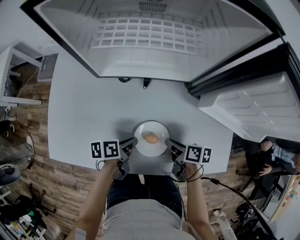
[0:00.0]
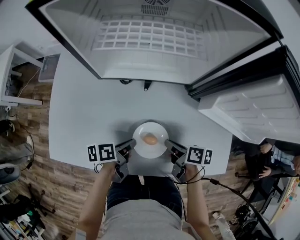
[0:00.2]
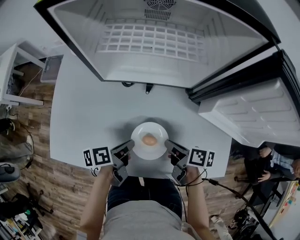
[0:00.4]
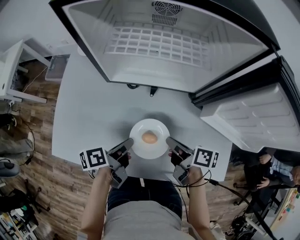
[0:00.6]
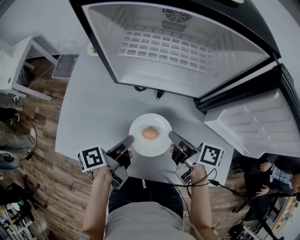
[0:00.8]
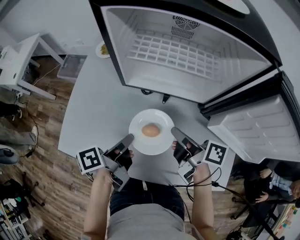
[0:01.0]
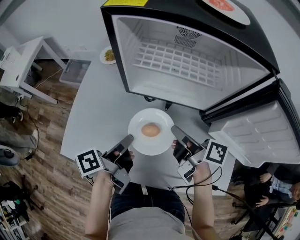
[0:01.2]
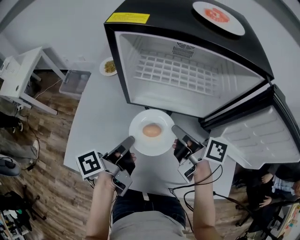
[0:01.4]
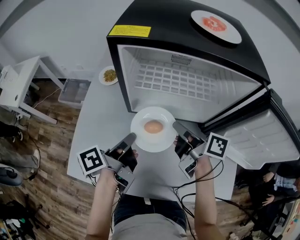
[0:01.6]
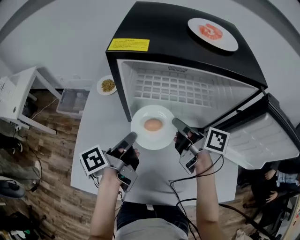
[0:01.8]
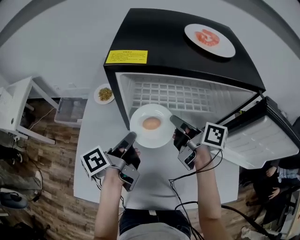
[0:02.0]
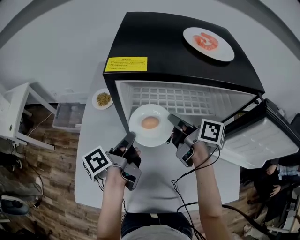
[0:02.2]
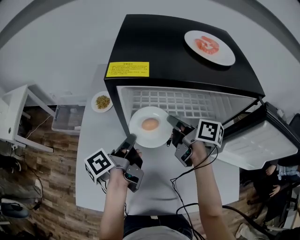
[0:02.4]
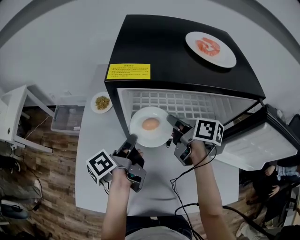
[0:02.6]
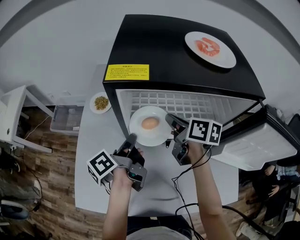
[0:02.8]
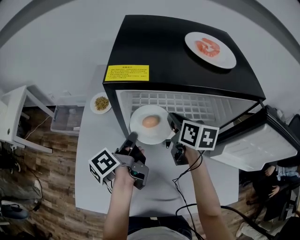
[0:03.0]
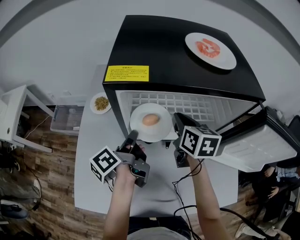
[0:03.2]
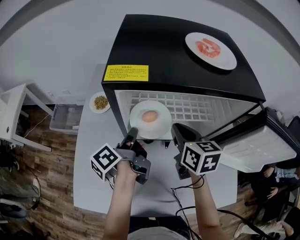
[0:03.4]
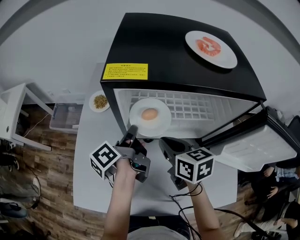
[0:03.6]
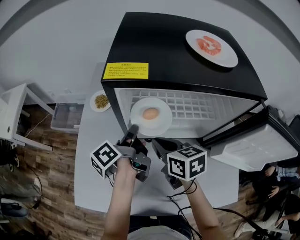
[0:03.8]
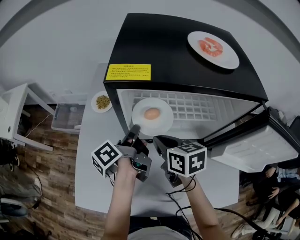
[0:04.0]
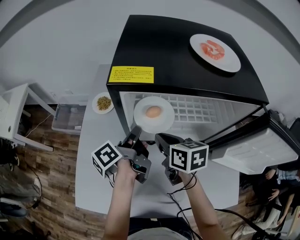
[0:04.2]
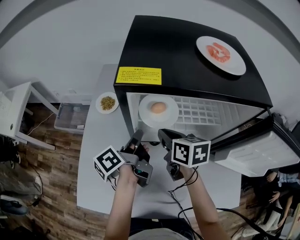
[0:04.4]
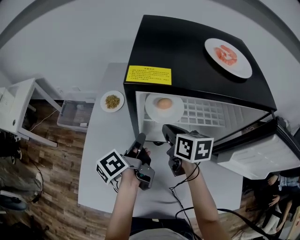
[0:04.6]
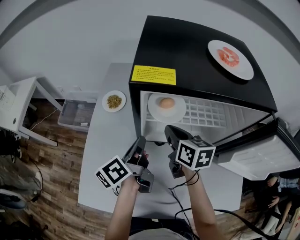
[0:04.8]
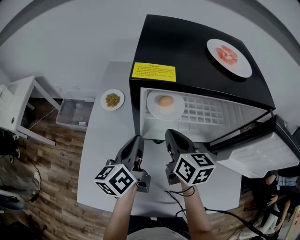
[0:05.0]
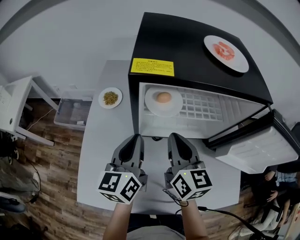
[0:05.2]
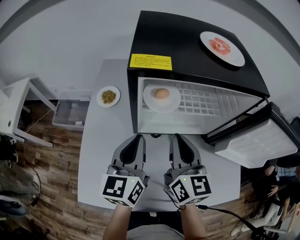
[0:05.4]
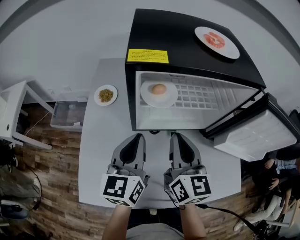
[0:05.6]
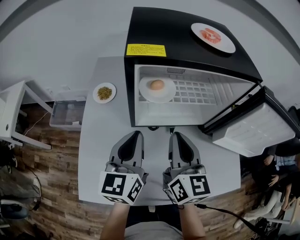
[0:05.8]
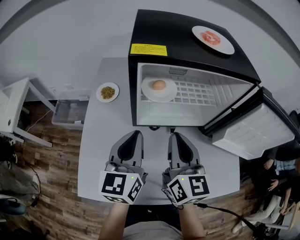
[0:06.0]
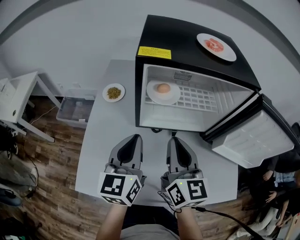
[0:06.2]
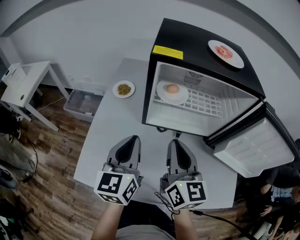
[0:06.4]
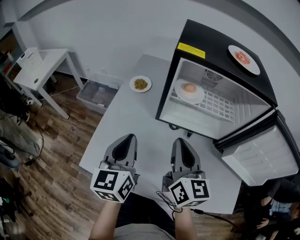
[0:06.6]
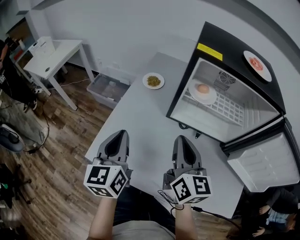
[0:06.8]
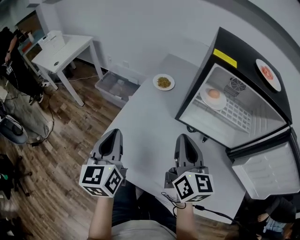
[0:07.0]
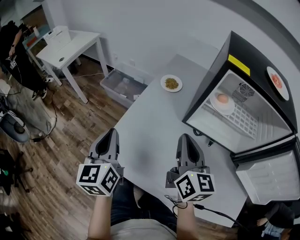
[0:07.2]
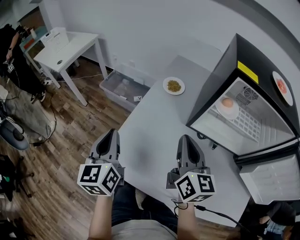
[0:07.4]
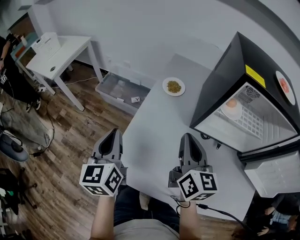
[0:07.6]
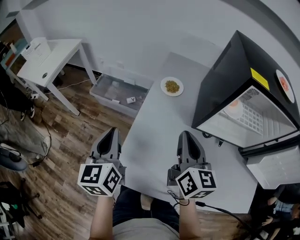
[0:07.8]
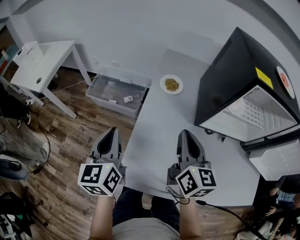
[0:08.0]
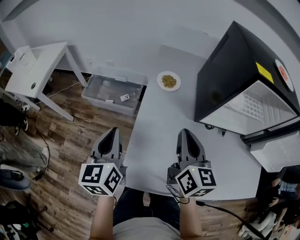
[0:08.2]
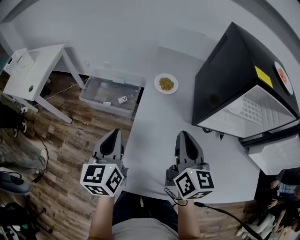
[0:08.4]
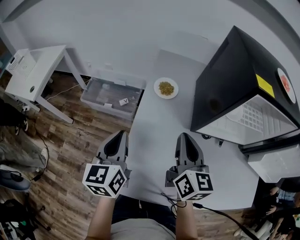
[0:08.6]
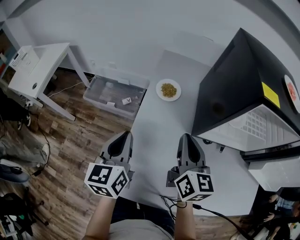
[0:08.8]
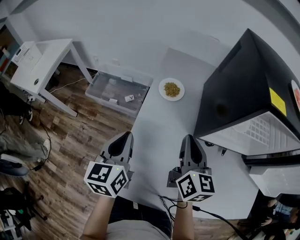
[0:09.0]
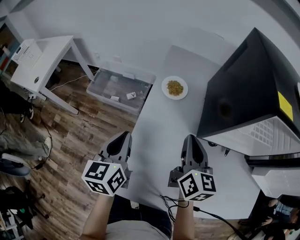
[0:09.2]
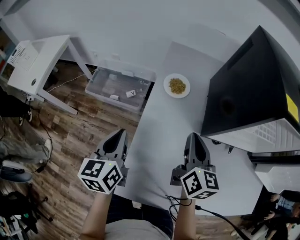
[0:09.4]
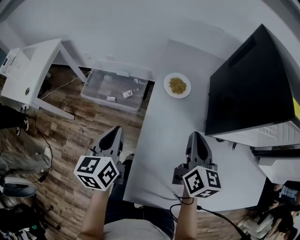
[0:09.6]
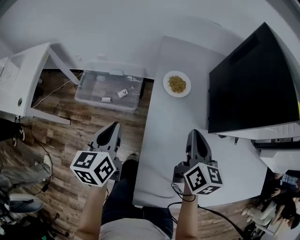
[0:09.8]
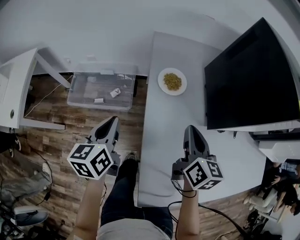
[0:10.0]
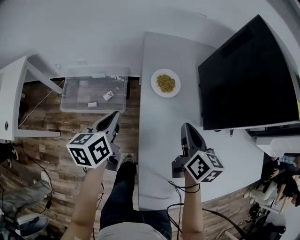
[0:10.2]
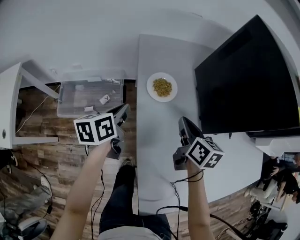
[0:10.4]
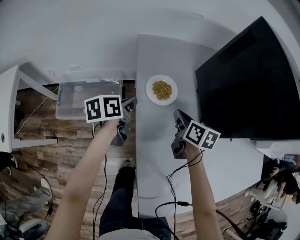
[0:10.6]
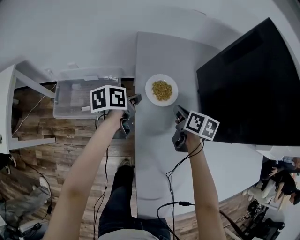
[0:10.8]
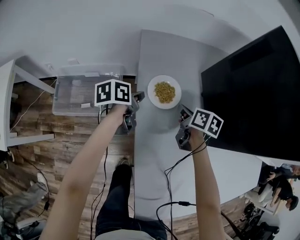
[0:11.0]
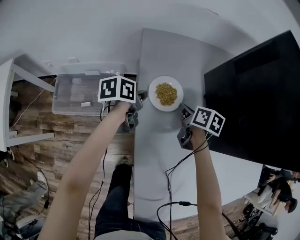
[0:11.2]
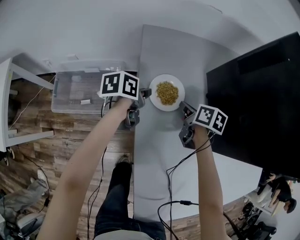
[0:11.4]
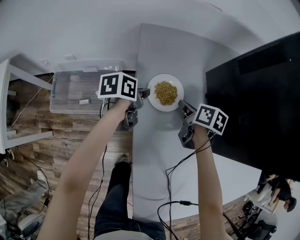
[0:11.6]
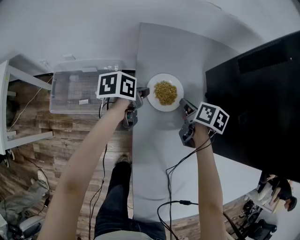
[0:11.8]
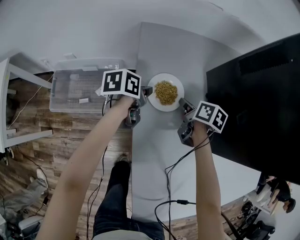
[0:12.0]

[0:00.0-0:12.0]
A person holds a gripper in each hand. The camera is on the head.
0:00.0 to 0:01.6: The left gripper is displaced upward, forward and to the left by roughly 30 cm, and swivels roughly 40 degrees, while the right gripper goes roughly 30 cm upward and forward, and changes its angle by roughly 30 degrees.
0:01.6 to 0:03.0: Both grippers travel together forward, about 10 cm. The right gripper swivels some 40 degrees.
0:03.0 to 0:04.4: The right gripper travels to the left by some 5 cm.
0:04.4 to 0:06.0: The two grippers go approximately 15 cm backward and upward. The left gripper twists approximately 70 degrees clockwise, seen from behind. Meanwhile the right gripper rotates about 40 degrees.
0:06.0 to 0:07.6: The right gripper moves roughly 20 cm, and turns by some 20 degrees, while the left gripper changes place by some 30 cm, and turns by about 30 degrees.
0:07.6 to 0:09.0: The two grippers go about 10 cm forward.
0:09.0 to 0:10.4: The left gripper is displaced forward and downward by approximately 25 cm, and changes its angle by approximately 40 degrees. Meanwhile the right gripper goes about 15 cm forward, downward and to the left, and turns by some 20 degrees.
0:10.4 to 0:12.0: The two grippers go roughly 20 cm forward and downward. The left gripper changes its angle by approximately 20 degrees; the right gripper changes its angle by approximately 20 degrees.

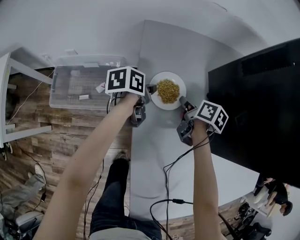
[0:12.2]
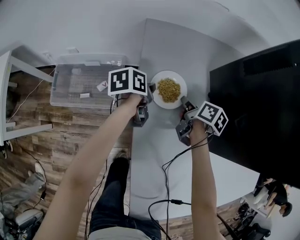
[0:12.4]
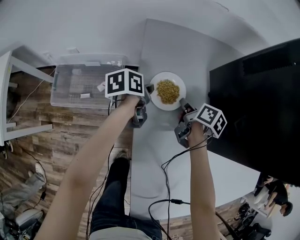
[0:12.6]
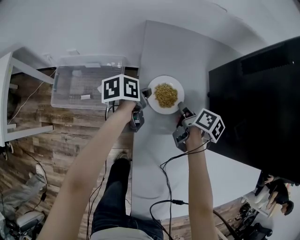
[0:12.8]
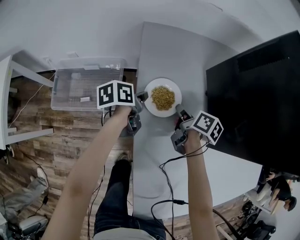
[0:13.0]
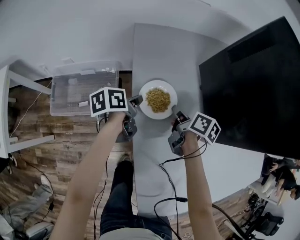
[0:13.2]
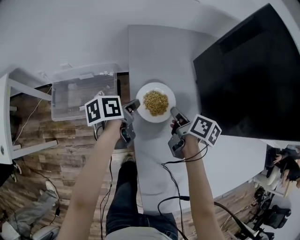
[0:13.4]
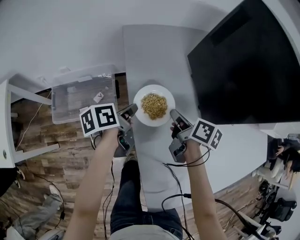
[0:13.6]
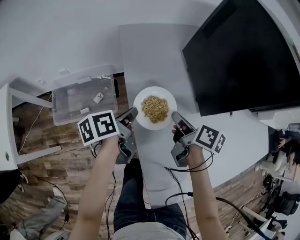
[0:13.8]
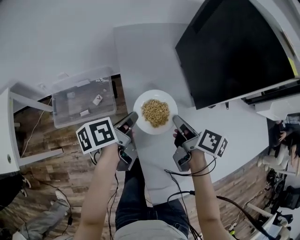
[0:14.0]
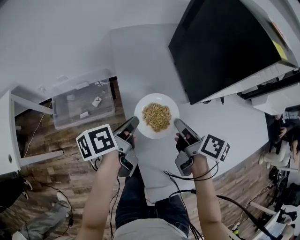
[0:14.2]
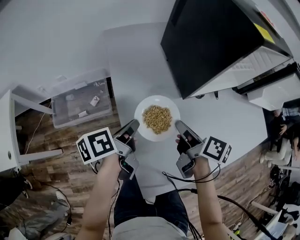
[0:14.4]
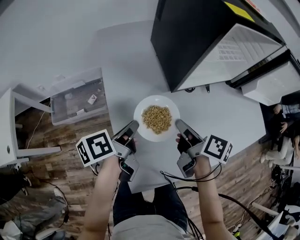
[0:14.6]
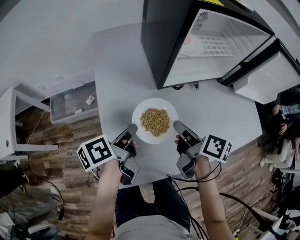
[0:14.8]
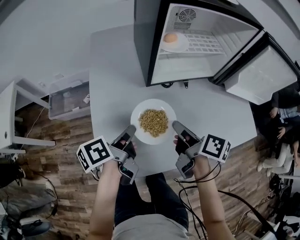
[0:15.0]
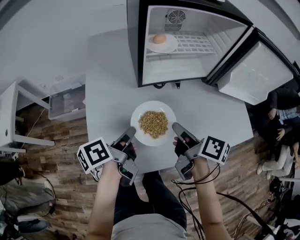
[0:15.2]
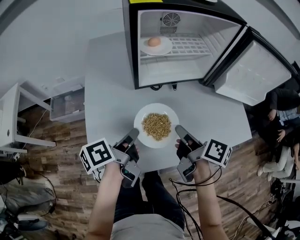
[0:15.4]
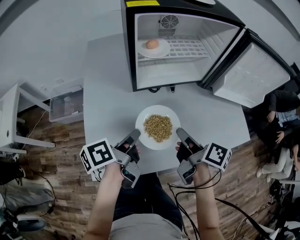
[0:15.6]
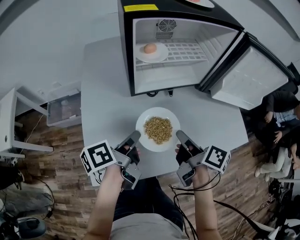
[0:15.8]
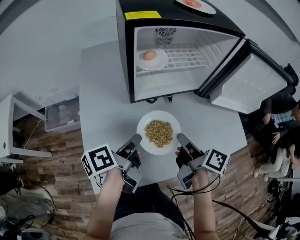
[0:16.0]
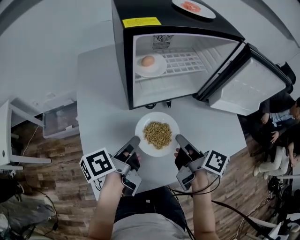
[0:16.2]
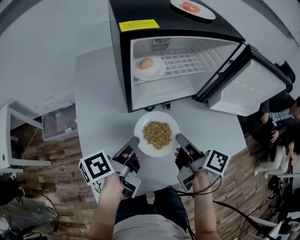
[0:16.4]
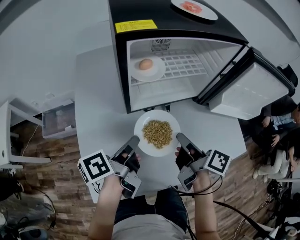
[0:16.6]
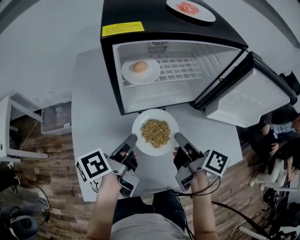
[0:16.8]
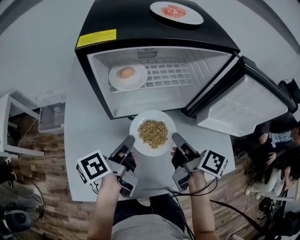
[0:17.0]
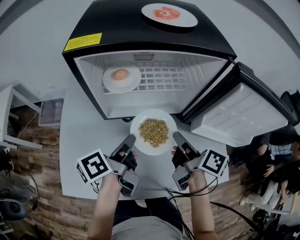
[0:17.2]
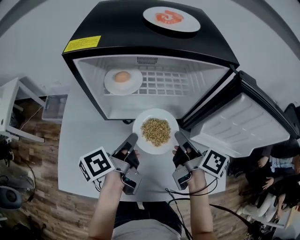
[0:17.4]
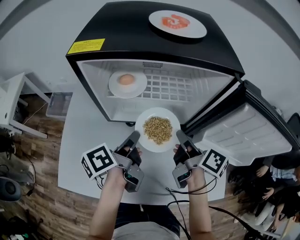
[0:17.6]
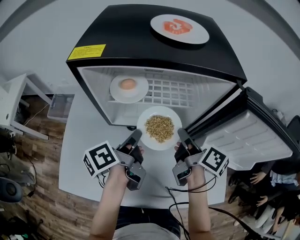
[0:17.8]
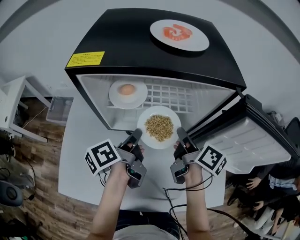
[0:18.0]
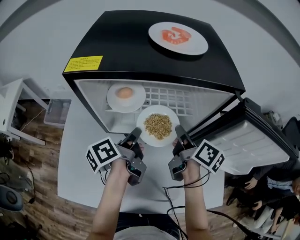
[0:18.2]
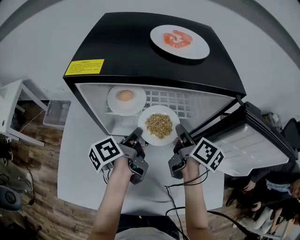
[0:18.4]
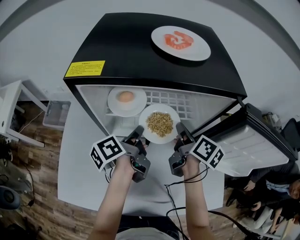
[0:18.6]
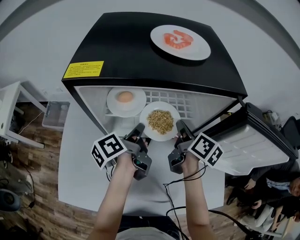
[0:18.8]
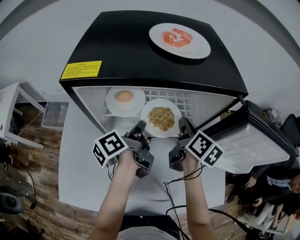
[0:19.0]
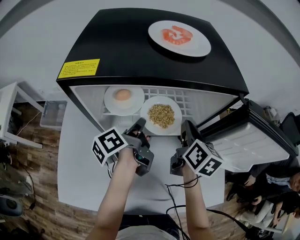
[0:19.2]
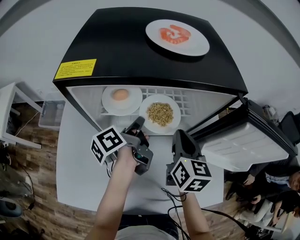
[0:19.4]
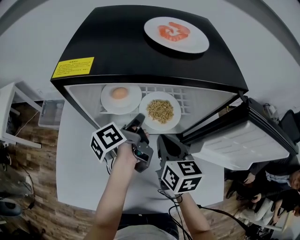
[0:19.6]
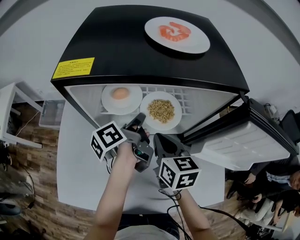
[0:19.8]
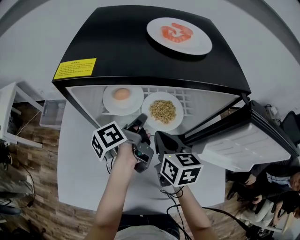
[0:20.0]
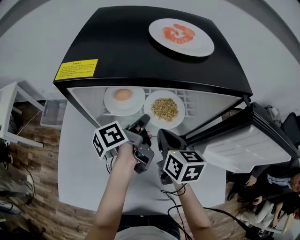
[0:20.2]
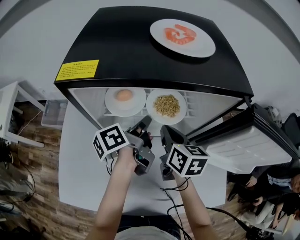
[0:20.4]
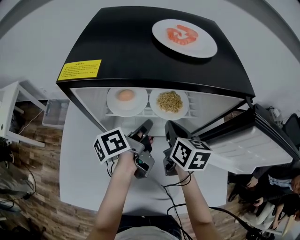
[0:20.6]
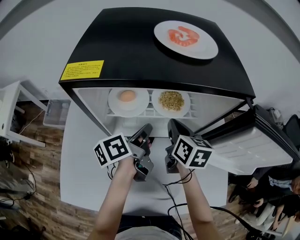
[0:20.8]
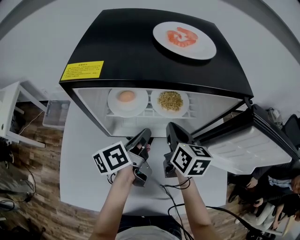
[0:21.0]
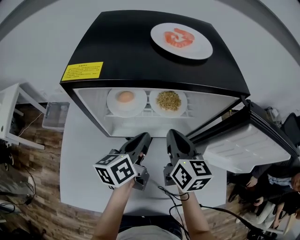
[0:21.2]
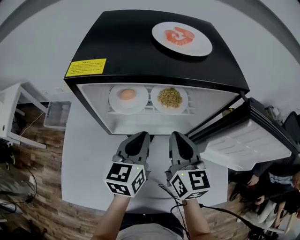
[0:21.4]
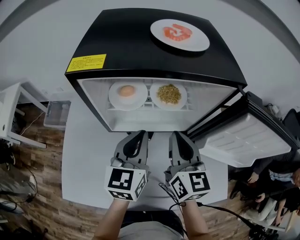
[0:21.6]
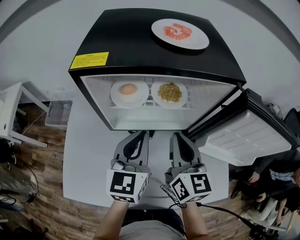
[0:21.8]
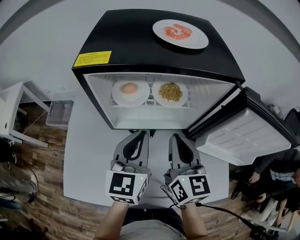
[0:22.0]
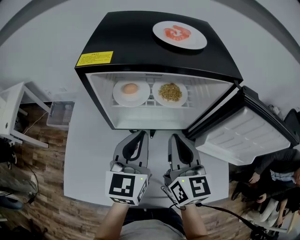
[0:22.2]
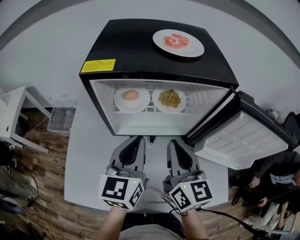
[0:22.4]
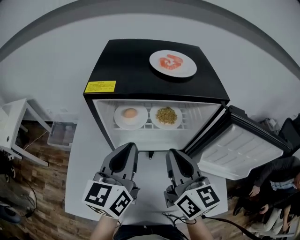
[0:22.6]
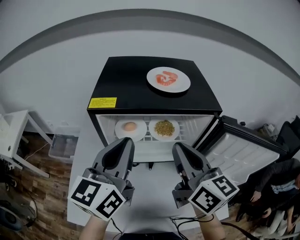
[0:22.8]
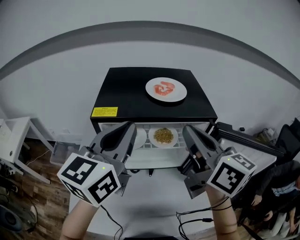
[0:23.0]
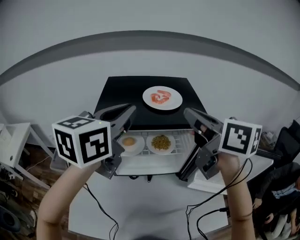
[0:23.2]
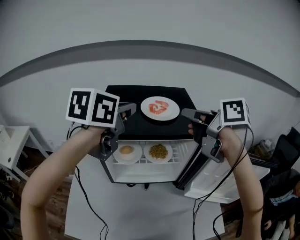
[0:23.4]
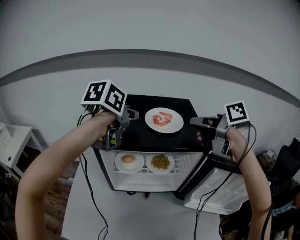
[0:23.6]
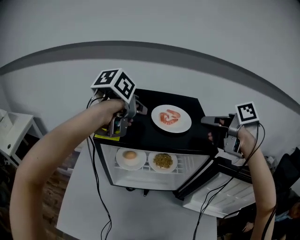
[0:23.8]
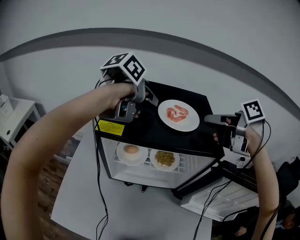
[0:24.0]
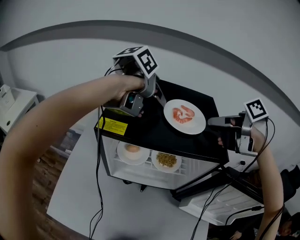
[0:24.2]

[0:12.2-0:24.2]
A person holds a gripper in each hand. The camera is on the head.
0:12.2 to 0:13.8: The two grippers go approximately 20 cm backward and upward.
0:13.8 to 0:15.2: Both grippers move to the right and backward, some 35 cm.
0:15.2 to 0:16.6: The right gripper heads forward and to the right, covering roughly 10 cm, while the left gripper is displaced forward by approximately 10 cm.
0:16.6 to 0:18.2: The grippers both shift forward and to the right by approximately 20 cm. The left gripper rotates roughly 20 degrees.
0:18.2 to 0:19.8: The left gripper shifts roughly 5 cm forward. The right gripper travels to the left by some 10 cm, and rolls counterclockwise, seen from behind, by about 40 degrees.
0:19.8 to 0:21.2: The right gripper changes place by about 5 cm; the left gripper moves backward, about 5 cm, and turns by roughly 40 degrees.
0:21.2 to 0:22.6: The grippers both shift upward and backward by about 15 cm. The left gripper rotates roughly 30 degrees.
0:22.6 to 0:24.2: The right gripper moves approximately 30 cm, tilts its fingers roughly 30 degrees downward, and opens; the left gripper ends up some 25 cm from where it was, and points its fingers approximately 40 degrees further downward.
